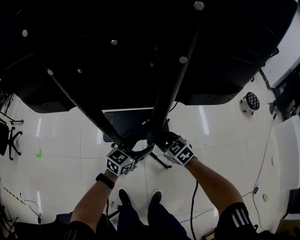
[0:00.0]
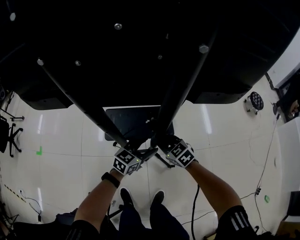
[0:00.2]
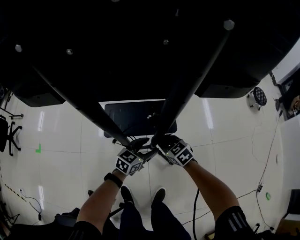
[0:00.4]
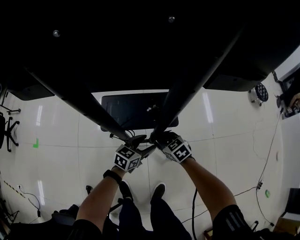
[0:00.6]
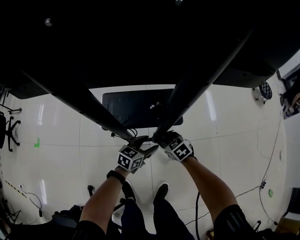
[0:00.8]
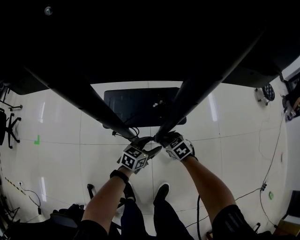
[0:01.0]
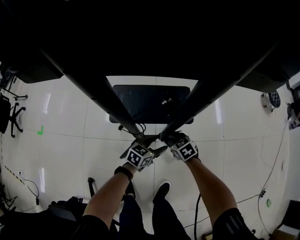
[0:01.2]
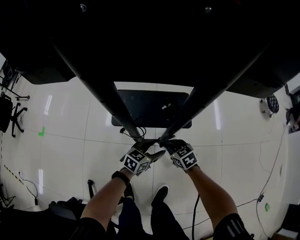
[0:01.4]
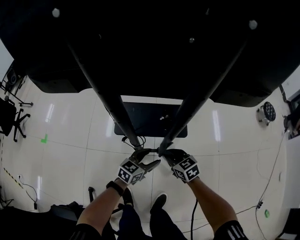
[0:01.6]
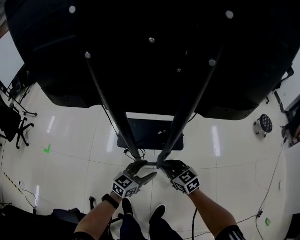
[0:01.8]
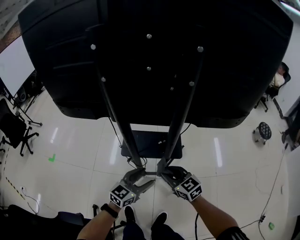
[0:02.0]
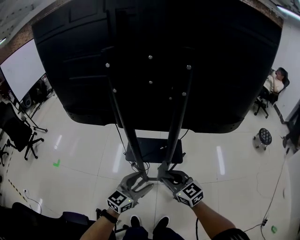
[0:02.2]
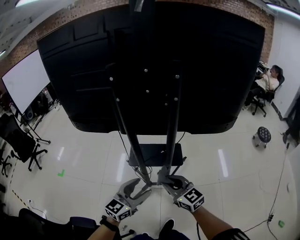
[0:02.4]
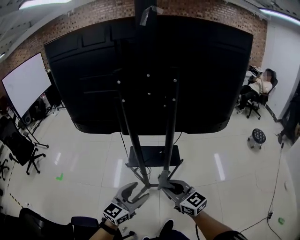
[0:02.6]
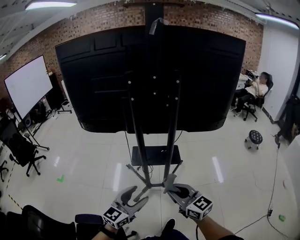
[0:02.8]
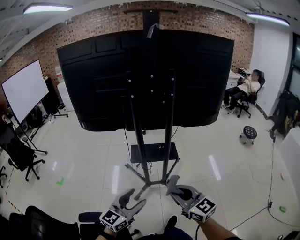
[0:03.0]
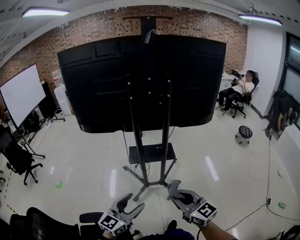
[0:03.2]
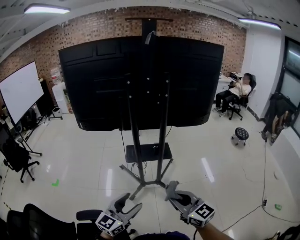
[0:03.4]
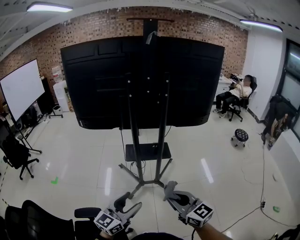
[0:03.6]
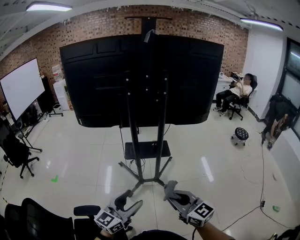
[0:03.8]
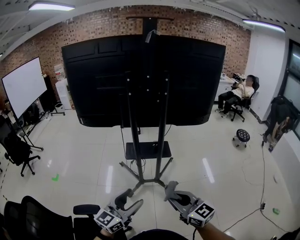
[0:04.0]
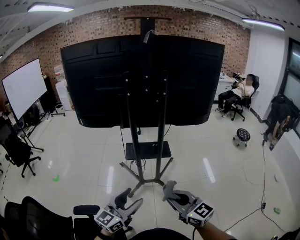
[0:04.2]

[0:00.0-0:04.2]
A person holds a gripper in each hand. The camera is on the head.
0:00.0 to 0:01.4: The two grippers go approximately 25 cm downward.
0:01.4 to 0:02.8: Both grippers travel together upward and backward, about 60 cm. The left gripper rotates approximately 30 degrees; the right gripper tilts its fingers some 40 degrees upward.
0:02.8 to 0:04.2: The left gripper travels backward and upward by about 15 cm, while the right gripper heads backward, covering some 15 cm.

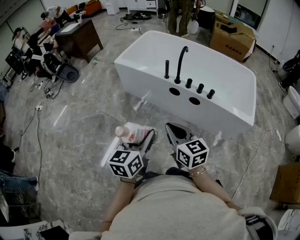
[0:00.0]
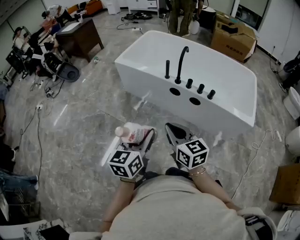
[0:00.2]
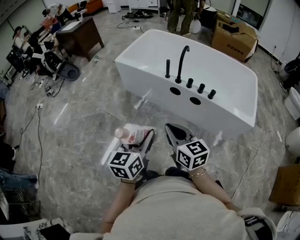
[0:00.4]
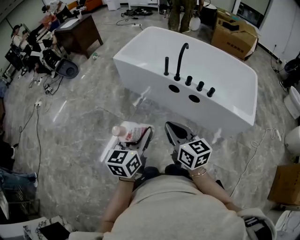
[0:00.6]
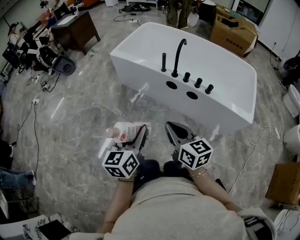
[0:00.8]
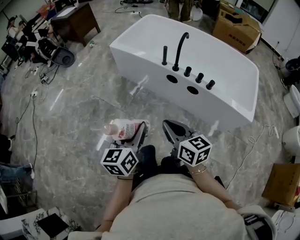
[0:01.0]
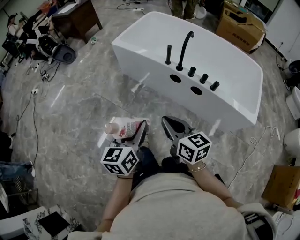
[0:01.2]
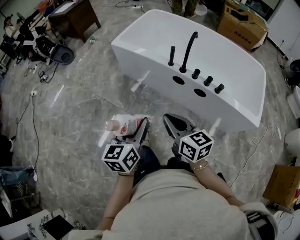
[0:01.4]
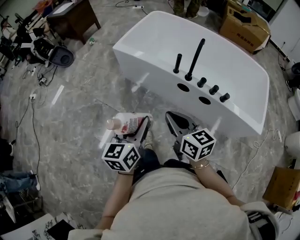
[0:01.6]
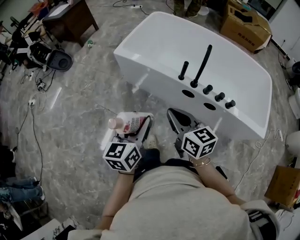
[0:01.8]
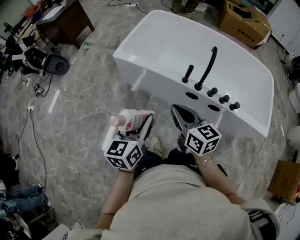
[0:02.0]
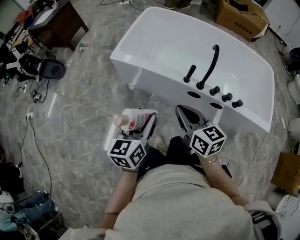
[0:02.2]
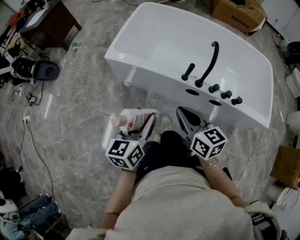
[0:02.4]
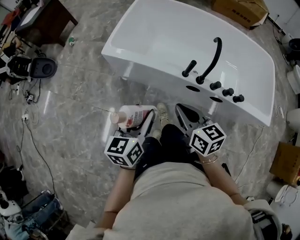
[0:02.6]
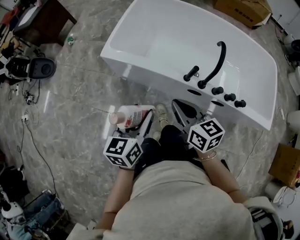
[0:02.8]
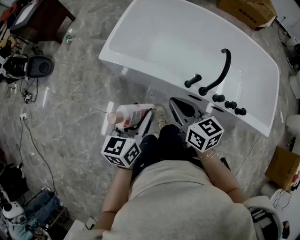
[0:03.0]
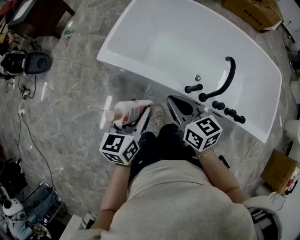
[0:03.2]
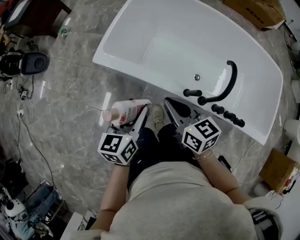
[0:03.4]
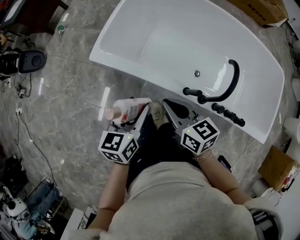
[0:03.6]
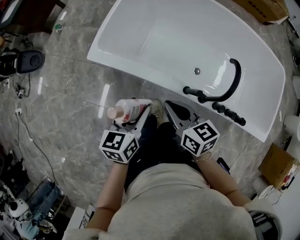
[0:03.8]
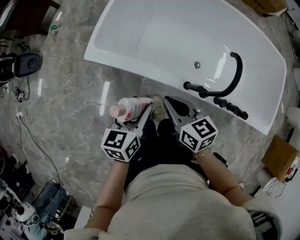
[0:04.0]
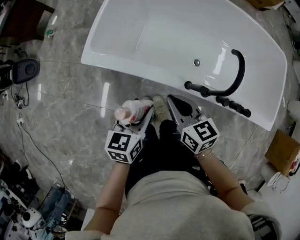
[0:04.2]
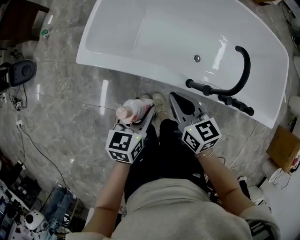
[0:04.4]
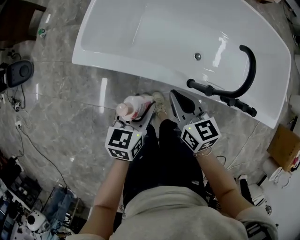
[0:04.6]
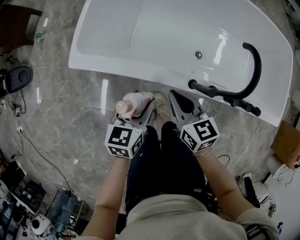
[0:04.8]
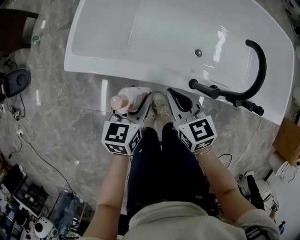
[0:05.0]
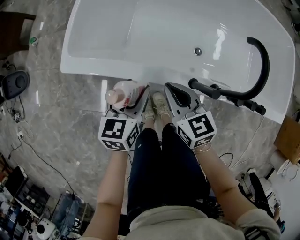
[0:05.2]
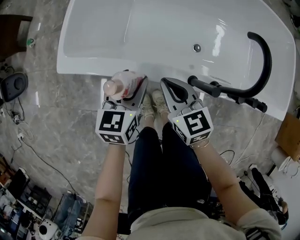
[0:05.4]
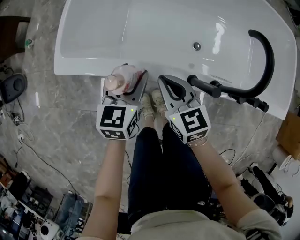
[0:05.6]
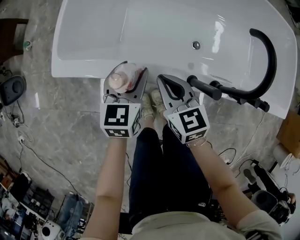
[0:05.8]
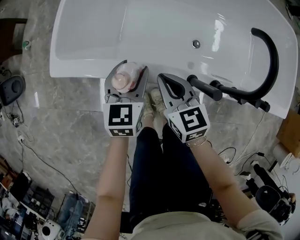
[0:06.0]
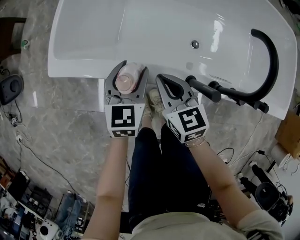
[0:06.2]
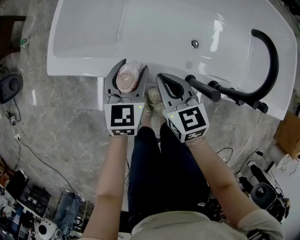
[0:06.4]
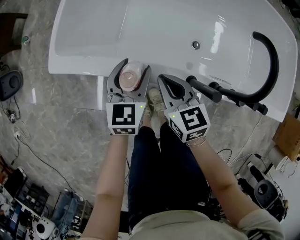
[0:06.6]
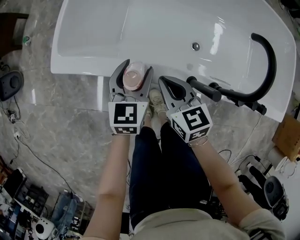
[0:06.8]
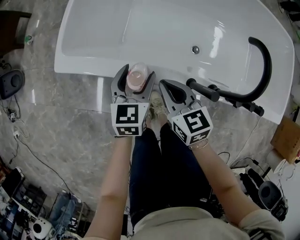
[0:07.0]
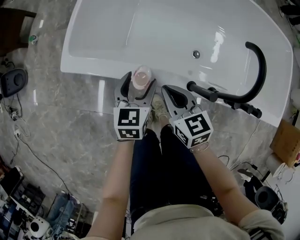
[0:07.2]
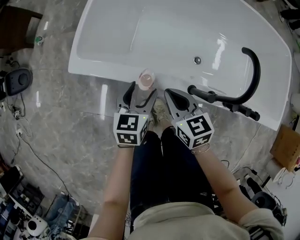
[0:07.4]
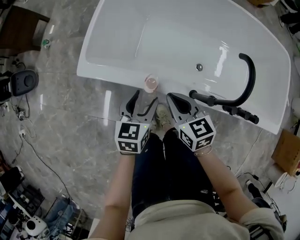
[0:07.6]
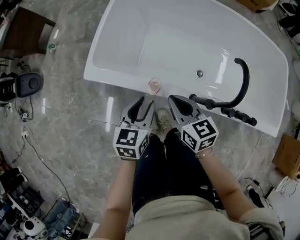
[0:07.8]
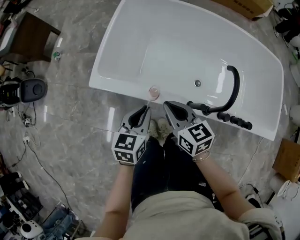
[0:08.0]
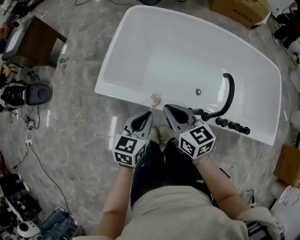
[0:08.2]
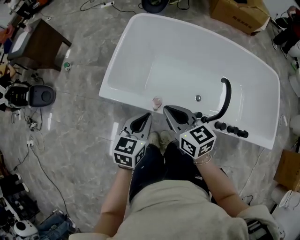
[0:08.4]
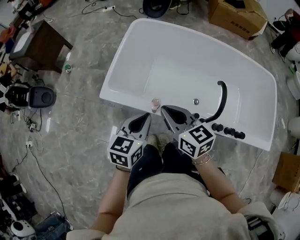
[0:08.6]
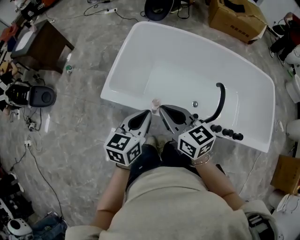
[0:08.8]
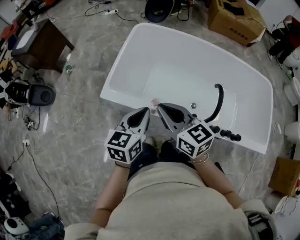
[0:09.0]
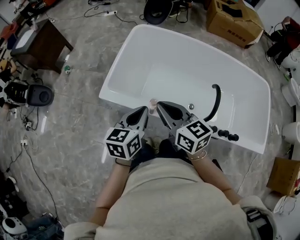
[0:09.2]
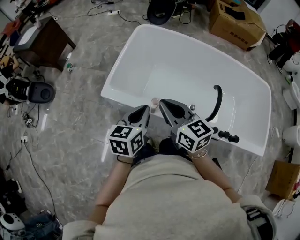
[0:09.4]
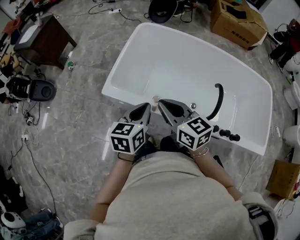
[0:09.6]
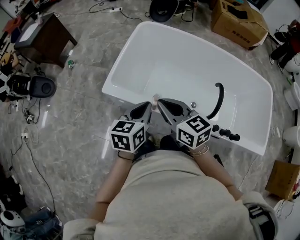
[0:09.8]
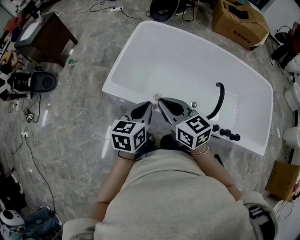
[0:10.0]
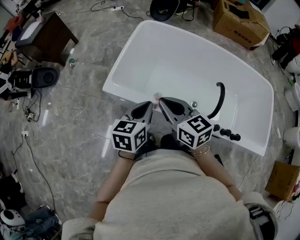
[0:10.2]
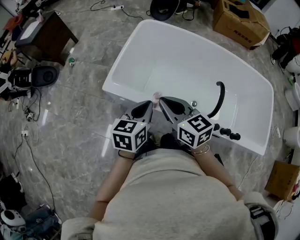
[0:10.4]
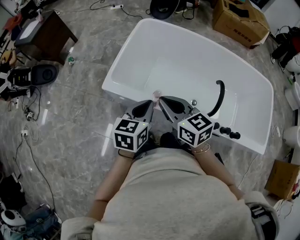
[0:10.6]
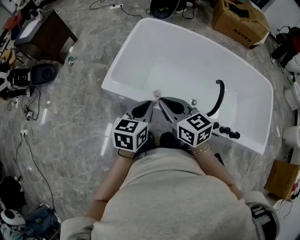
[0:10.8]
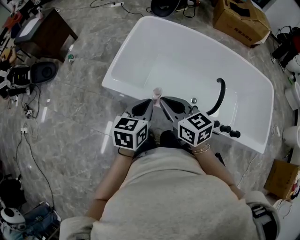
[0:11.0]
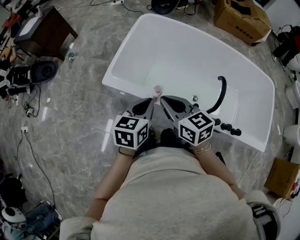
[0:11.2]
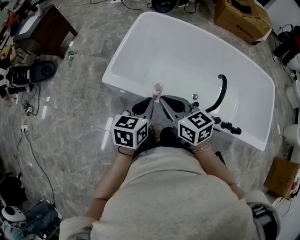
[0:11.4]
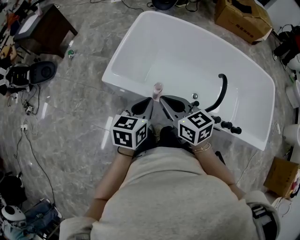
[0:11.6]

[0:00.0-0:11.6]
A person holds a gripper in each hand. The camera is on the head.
0:00.0 to 0:01.4: Both grippers travel together forward, approximately 10 cm.
0:01.4 to 0:02.8: The grippers both shift forward by approximately 40 cm.
0:02.8 to 0:04.4: The two grippers go about 25 cm forward and downward.
0:04.4 to 0:05.8: The right gripper heads downward and forward, covering some 15 cm; the left gripper goes roughly 20 cm forward and downward.
0:05.8 to 0:07.2: The grippers make only small movements.
0:07.2 to 0:08.8: Both grippers travel together upward, roughly 30 cm. The right gripper changes its angle by approximately 20 degrees. Meanwhile the left gripper closes its fingers.
0:08.8 to 0:11.6: The grippers stay close to where they were, moving slightly.

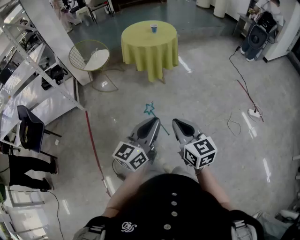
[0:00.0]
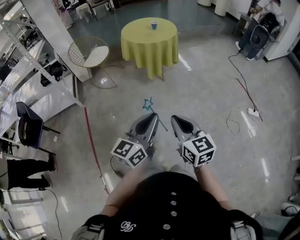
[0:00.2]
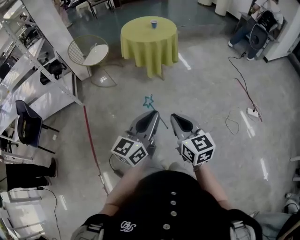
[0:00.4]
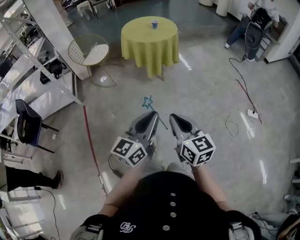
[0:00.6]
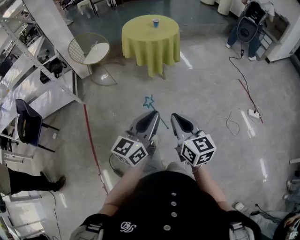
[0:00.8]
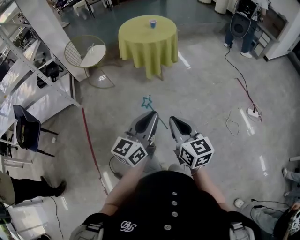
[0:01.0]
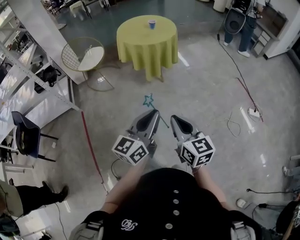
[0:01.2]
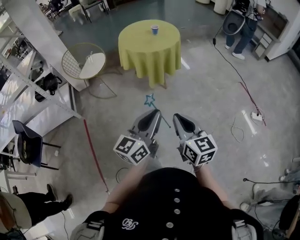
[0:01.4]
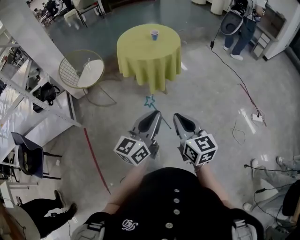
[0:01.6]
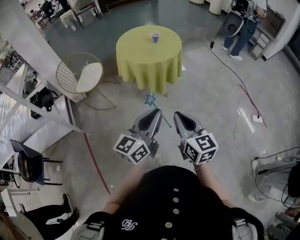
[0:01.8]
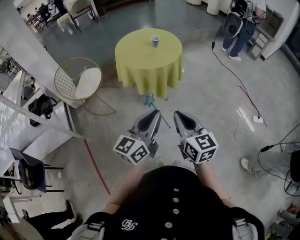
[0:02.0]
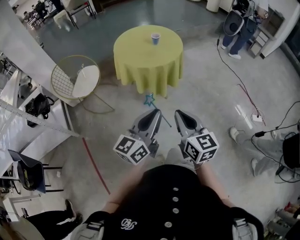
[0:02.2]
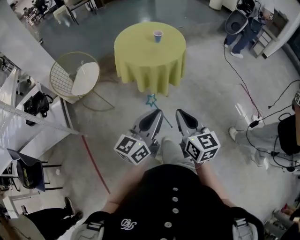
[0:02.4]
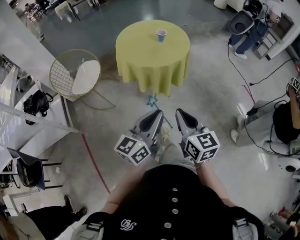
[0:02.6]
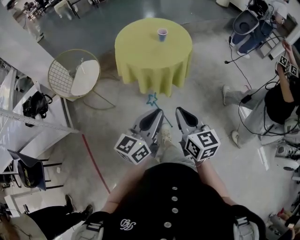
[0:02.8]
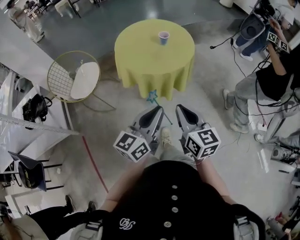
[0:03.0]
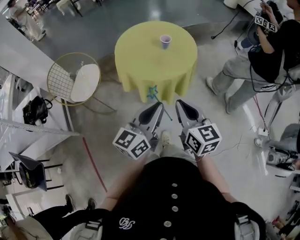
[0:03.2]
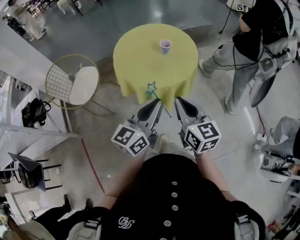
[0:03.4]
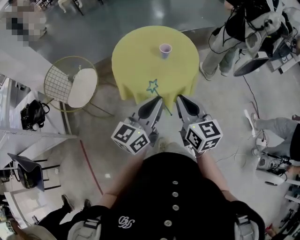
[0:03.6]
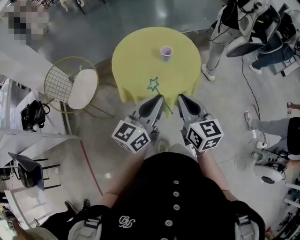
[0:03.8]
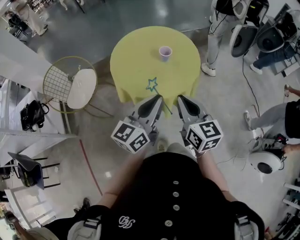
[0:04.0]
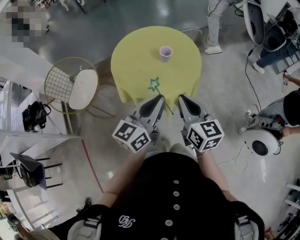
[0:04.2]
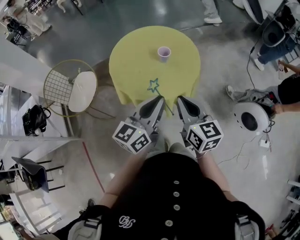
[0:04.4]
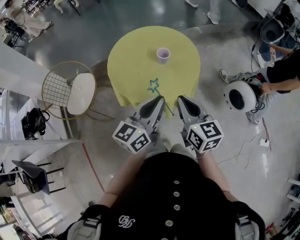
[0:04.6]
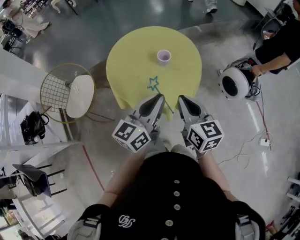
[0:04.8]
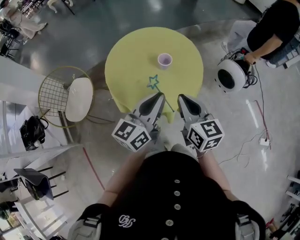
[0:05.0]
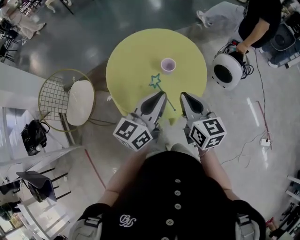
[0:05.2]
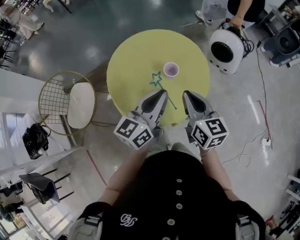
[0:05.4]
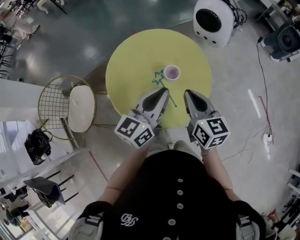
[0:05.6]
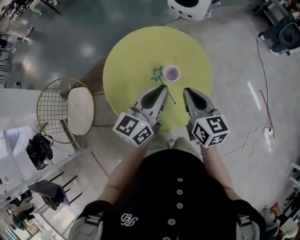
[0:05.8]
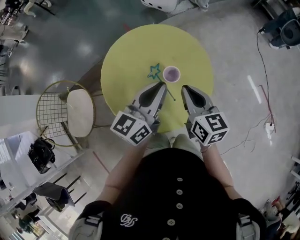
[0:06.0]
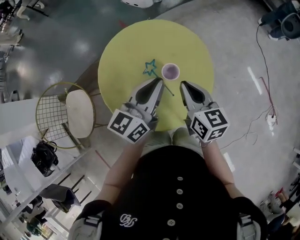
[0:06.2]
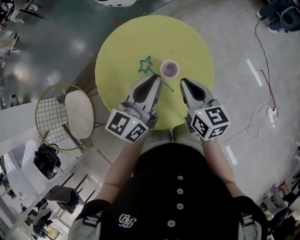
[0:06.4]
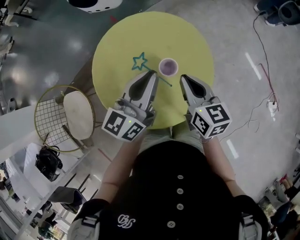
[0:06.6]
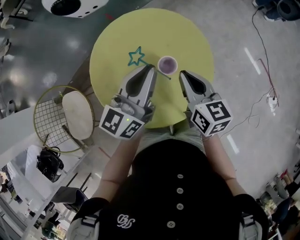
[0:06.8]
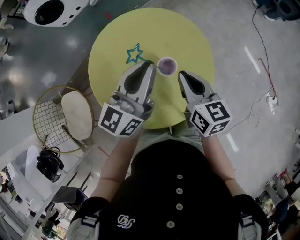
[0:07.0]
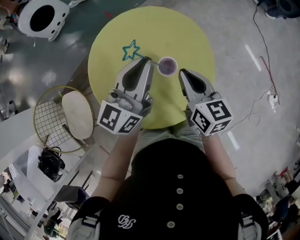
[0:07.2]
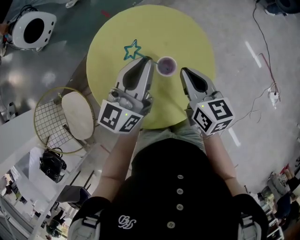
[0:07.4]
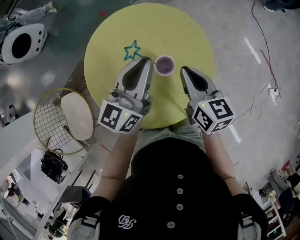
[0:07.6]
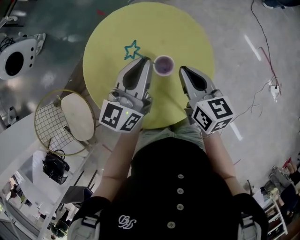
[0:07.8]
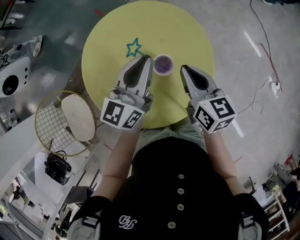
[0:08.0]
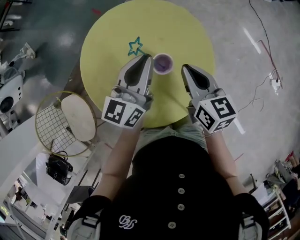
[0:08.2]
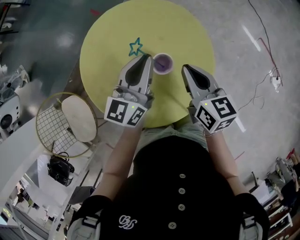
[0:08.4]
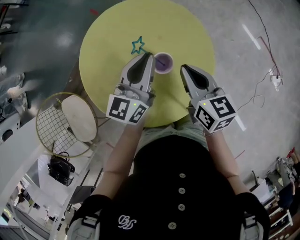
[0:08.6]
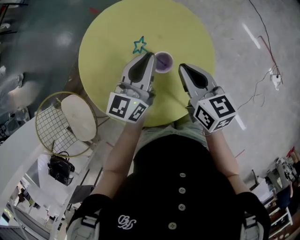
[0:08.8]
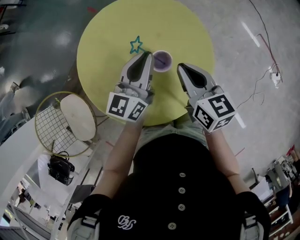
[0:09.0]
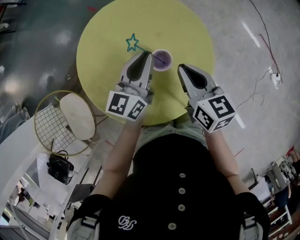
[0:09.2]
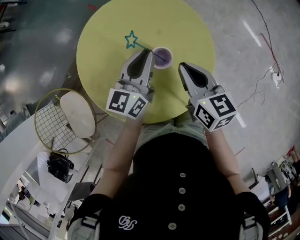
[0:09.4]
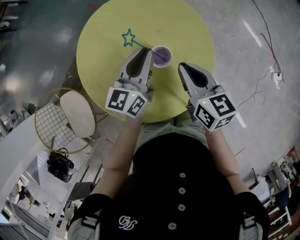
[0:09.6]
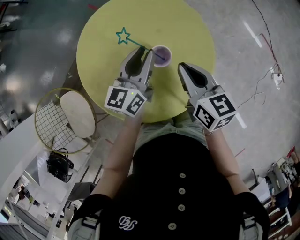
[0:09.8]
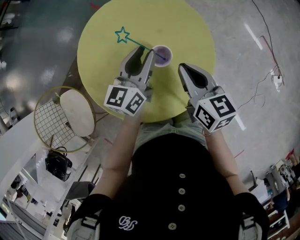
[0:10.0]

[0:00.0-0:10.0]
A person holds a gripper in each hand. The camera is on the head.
0:00.0 to 0:01.4: Both grippers move forward, some 20 cm.
0:01.4 to 0:02.8: Both grippers travel together forward, about 30 cm.
0:02.8 to 0:04.2: The two grippers go roughly 25 cm forward.
0:04.2 to 0:05.8: Both grippers travel together forward, approximately 25 cm.
0:05.8 to 0:07.2: The left gripper heads forward, covering some 10 cm; the right gripper heads forward, covering approximately 5 cm.
0:07.2 to 0:08.6: The left gripper is displaced downward by roughly 10 cm.
0:08.6 to 0:10.0: The left gripper opens its fingers.
